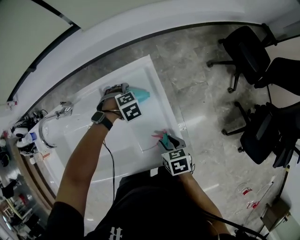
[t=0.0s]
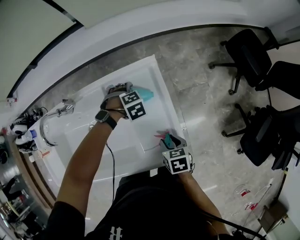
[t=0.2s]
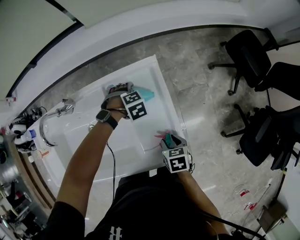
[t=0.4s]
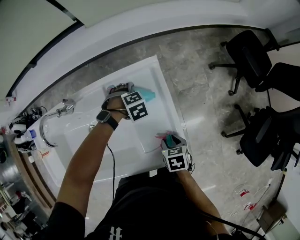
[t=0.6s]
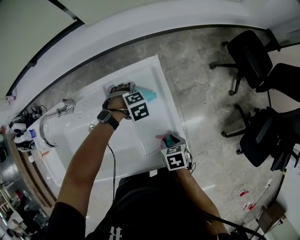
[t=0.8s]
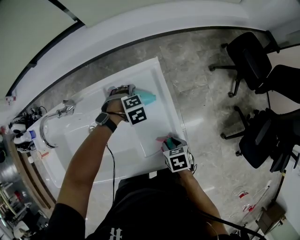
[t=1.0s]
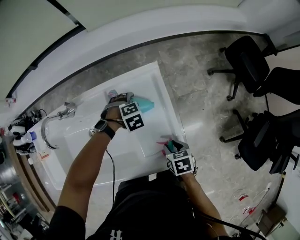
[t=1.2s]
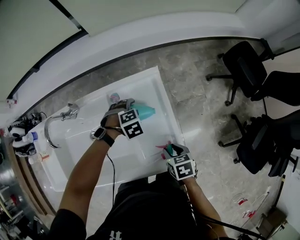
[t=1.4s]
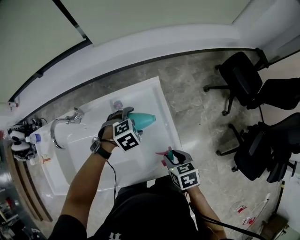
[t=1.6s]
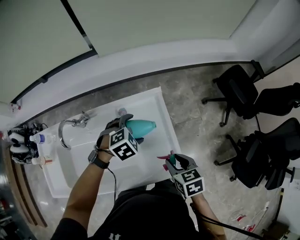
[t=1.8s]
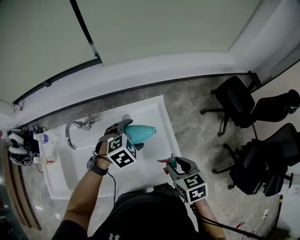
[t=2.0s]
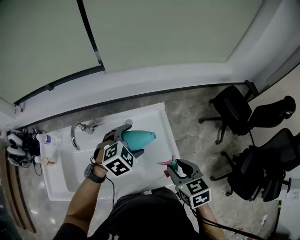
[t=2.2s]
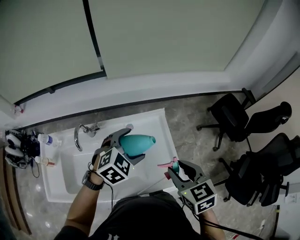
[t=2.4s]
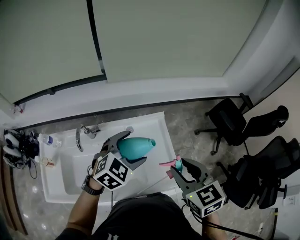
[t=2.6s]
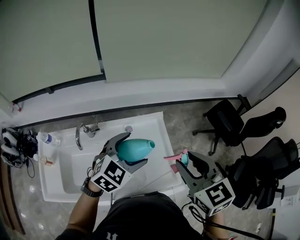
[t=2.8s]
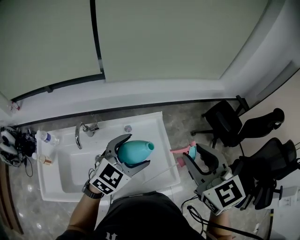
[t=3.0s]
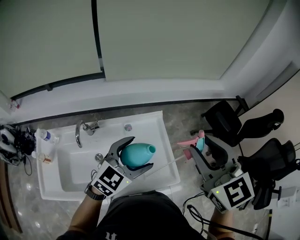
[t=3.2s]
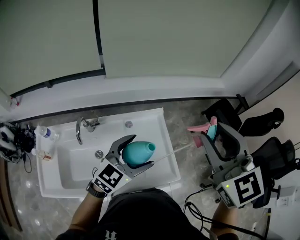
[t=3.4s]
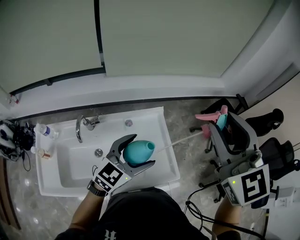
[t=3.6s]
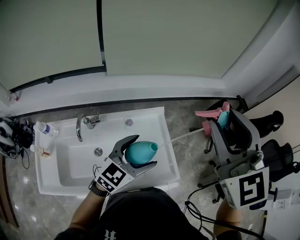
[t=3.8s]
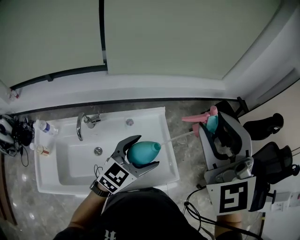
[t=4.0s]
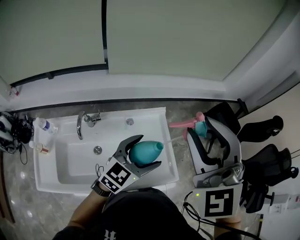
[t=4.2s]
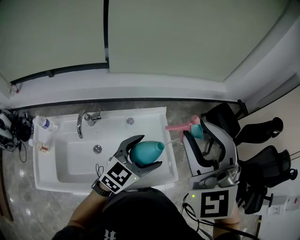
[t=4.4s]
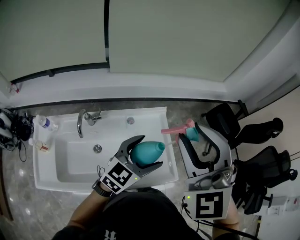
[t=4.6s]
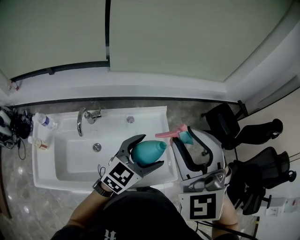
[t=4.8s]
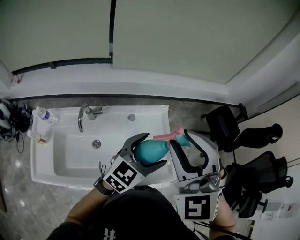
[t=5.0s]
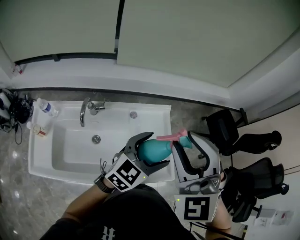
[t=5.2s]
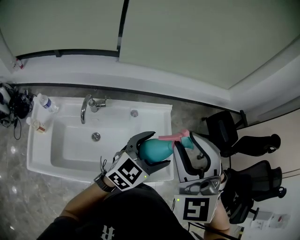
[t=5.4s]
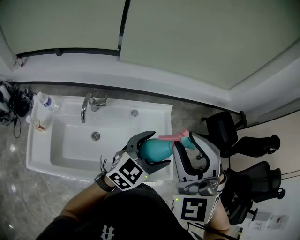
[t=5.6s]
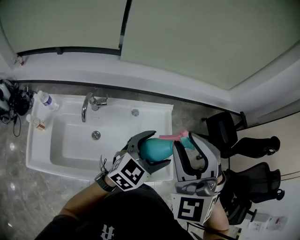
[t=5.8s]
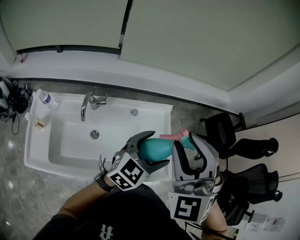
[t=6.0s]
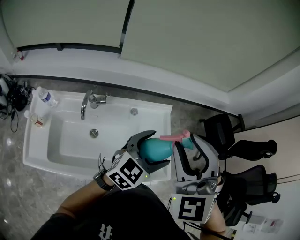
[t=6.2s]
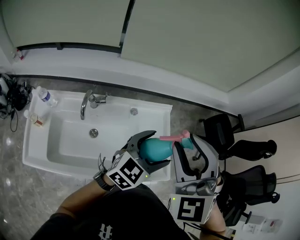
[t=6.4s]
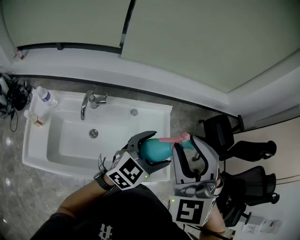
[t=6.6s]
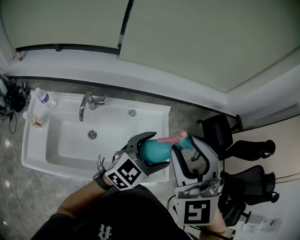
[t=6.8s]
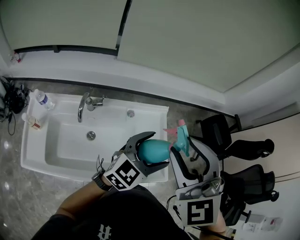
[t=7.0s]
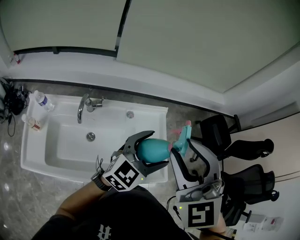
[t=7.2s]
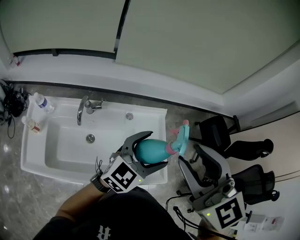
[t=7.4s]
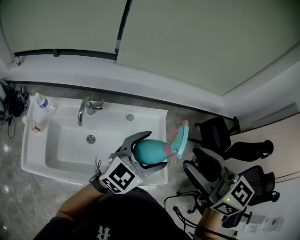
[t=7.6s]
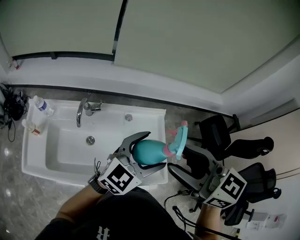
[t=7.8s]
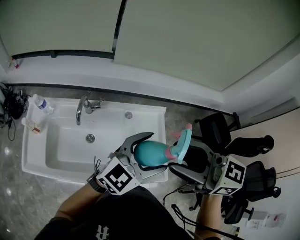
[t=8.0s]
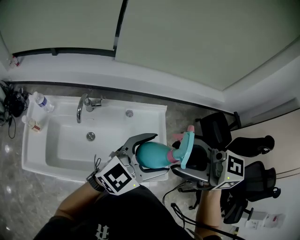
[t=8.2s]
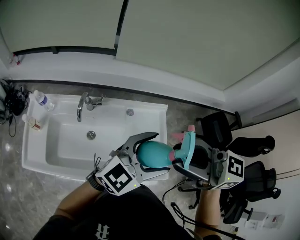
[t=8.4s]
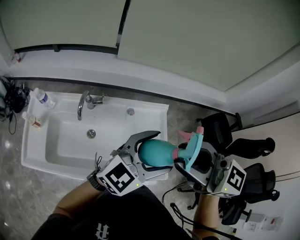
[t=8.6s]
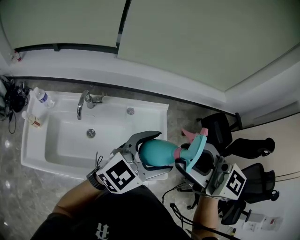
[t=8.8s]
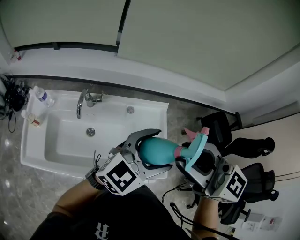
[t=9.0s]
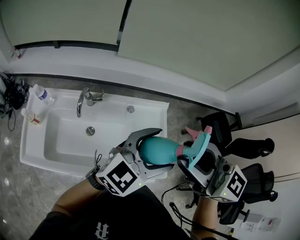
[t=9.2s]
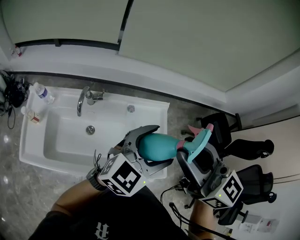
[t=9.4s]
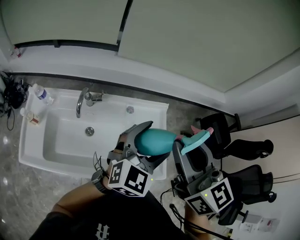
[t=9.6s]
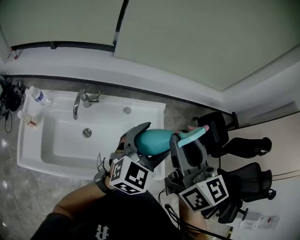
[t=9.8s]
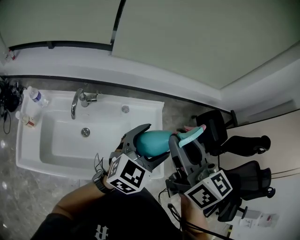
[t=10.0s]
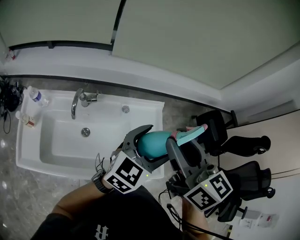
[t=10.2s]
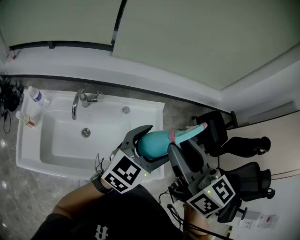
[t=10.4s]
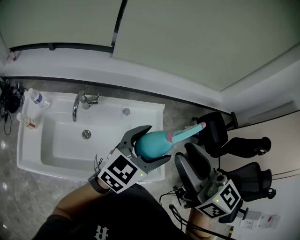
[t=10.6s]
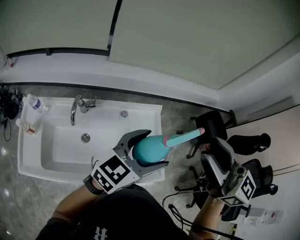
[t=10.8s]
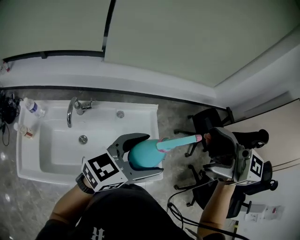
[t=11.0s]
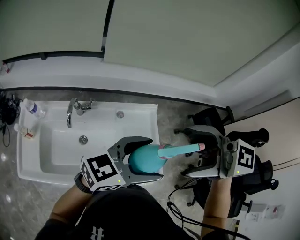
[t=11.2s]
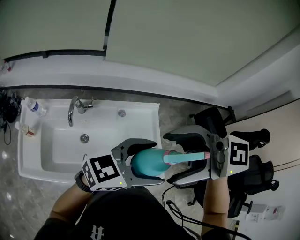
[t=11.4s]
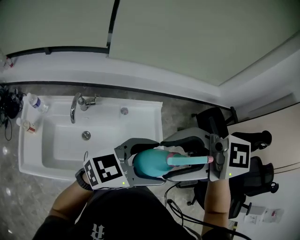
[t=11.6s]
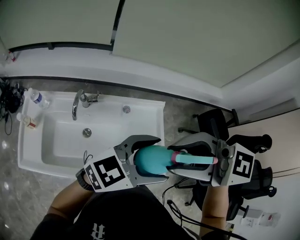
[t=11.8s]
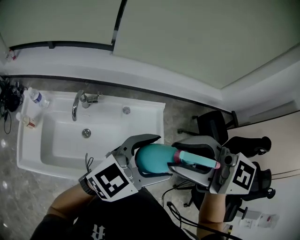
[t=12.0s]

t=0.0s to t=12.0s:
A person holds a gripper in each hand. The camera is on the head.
t=0.0s to t=1.6s: Both grippers move upward, about 10 cm.
t=1.6s to t=3.0s: The right gripper moves upward, approximately 40 cm, and angles its fingers upward, by roughly 30 degrees. Meanwhile the left gripper heads upward and backward, covering approximately 35 cm, and tilts its fingers some 50 degrees upward.
t=3.0s to t=4.4s: The right gripper goes roughly 10 cm upward and to the left, and swivels roughly 40 degrees.
t=4.4s to t=6.0s: The right gripper shifts some 5 cm downward.
t=6.0s to t=7.6s: The right gripper shifts by about 5 cm, and twists roughly 50 degrees clockwise, seen from behind.
t=7.6s to t=9.0s: The right gripper turns by about 20 degrees.
t=9.0s to t=10.4s: The right gripper changes place by about 5 cm, and rotates about 40 degrees.
t=10.4s to t=12.0s: The left gripper changes place by approximately 5 cm, while the right gripper moves upward, roughly 5 cm, rotates about 50 degrees, and opens and closes again.

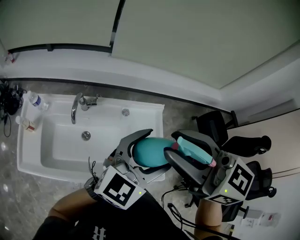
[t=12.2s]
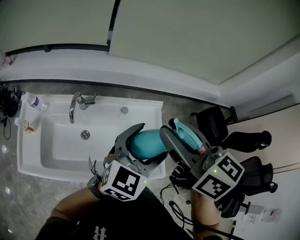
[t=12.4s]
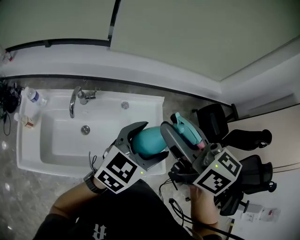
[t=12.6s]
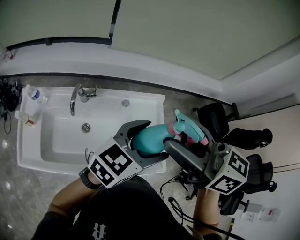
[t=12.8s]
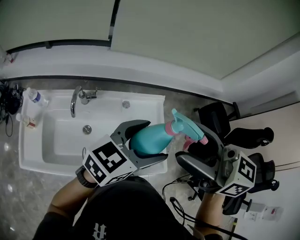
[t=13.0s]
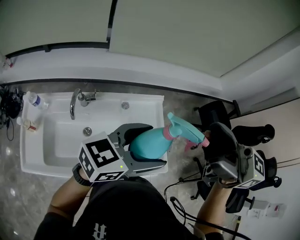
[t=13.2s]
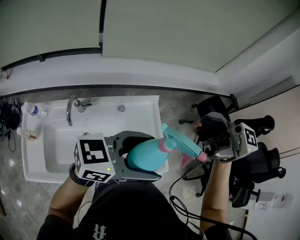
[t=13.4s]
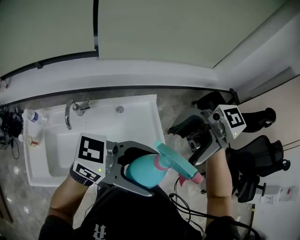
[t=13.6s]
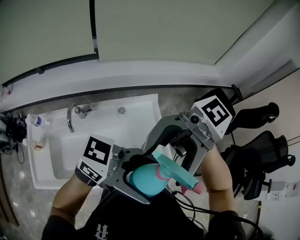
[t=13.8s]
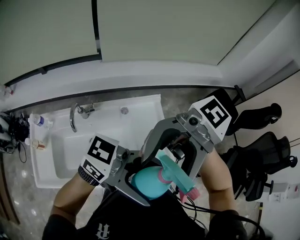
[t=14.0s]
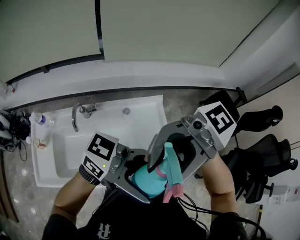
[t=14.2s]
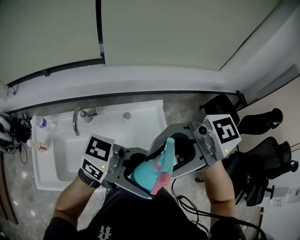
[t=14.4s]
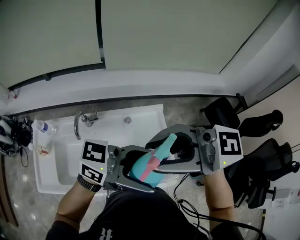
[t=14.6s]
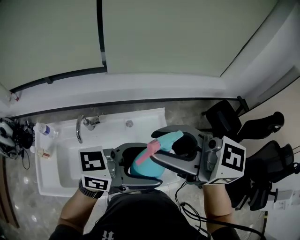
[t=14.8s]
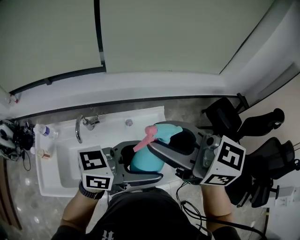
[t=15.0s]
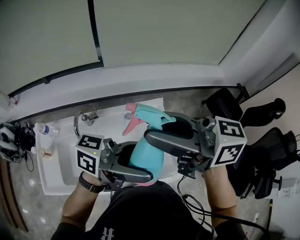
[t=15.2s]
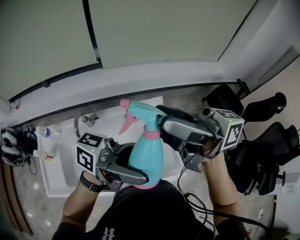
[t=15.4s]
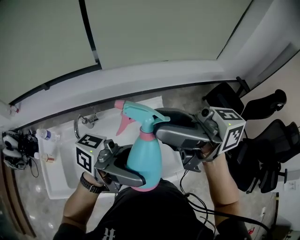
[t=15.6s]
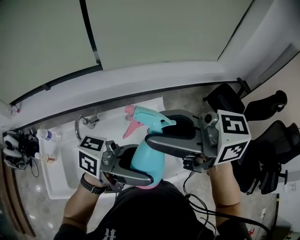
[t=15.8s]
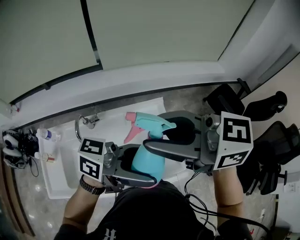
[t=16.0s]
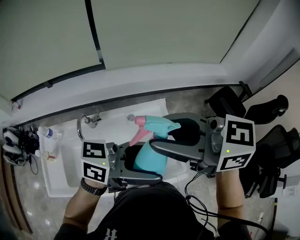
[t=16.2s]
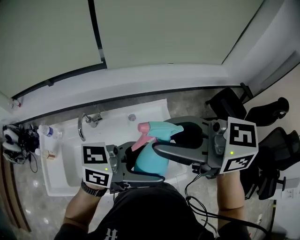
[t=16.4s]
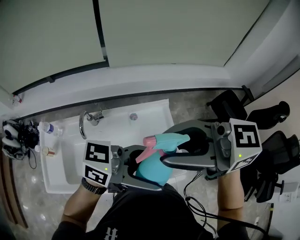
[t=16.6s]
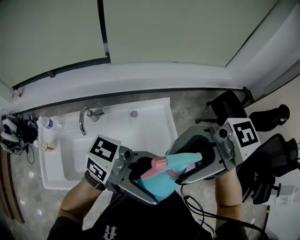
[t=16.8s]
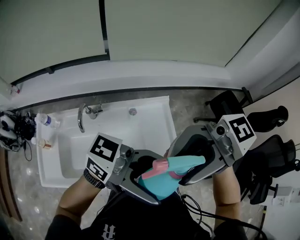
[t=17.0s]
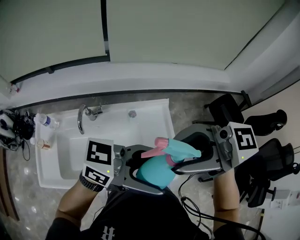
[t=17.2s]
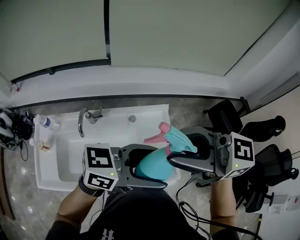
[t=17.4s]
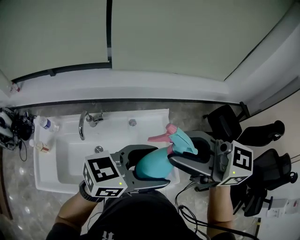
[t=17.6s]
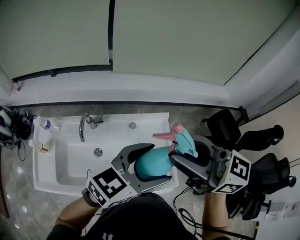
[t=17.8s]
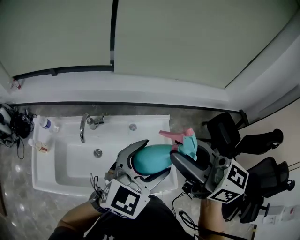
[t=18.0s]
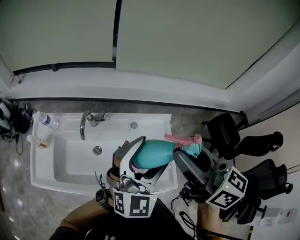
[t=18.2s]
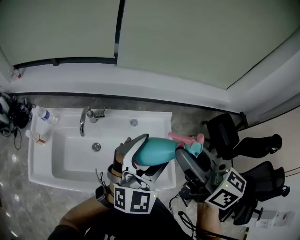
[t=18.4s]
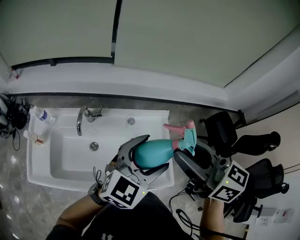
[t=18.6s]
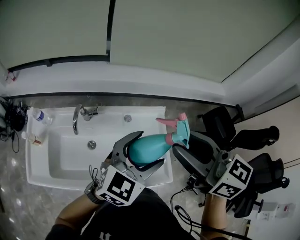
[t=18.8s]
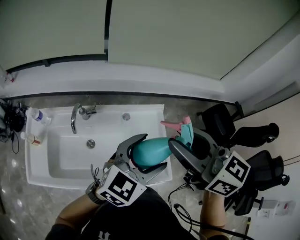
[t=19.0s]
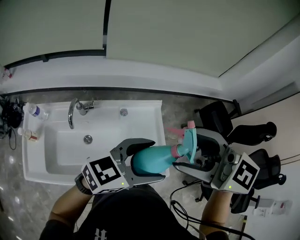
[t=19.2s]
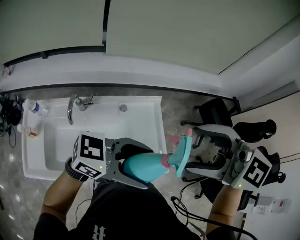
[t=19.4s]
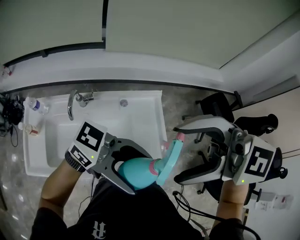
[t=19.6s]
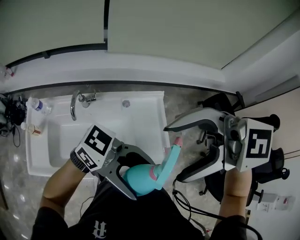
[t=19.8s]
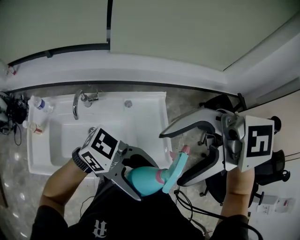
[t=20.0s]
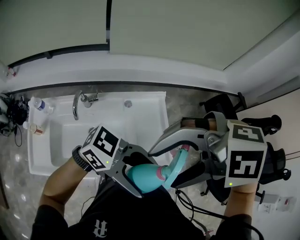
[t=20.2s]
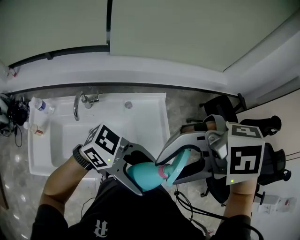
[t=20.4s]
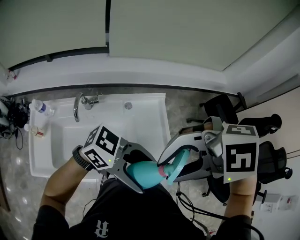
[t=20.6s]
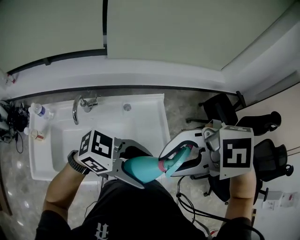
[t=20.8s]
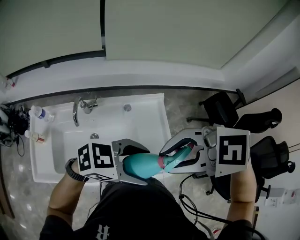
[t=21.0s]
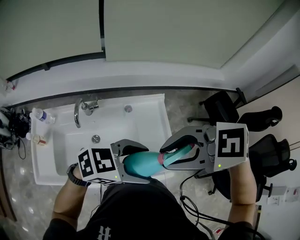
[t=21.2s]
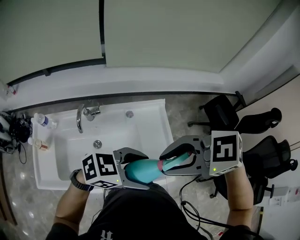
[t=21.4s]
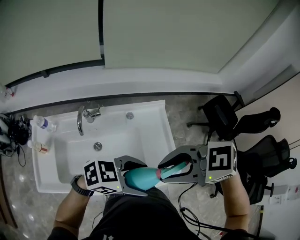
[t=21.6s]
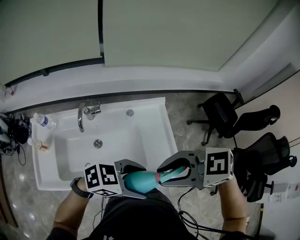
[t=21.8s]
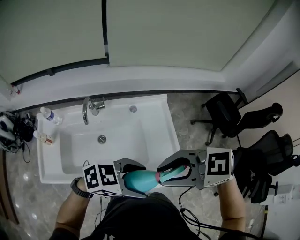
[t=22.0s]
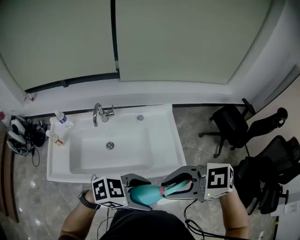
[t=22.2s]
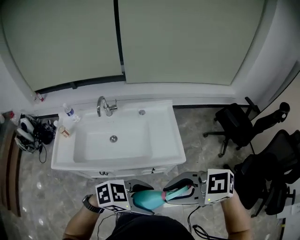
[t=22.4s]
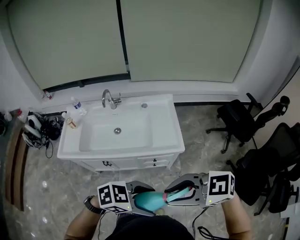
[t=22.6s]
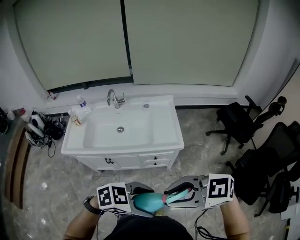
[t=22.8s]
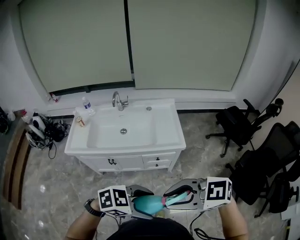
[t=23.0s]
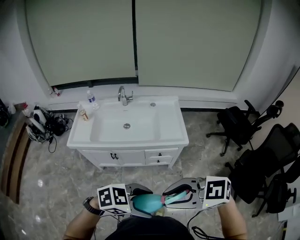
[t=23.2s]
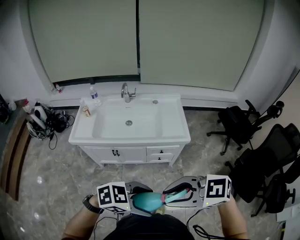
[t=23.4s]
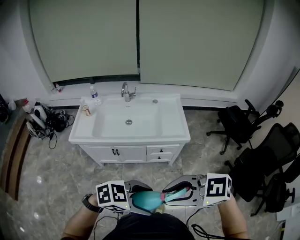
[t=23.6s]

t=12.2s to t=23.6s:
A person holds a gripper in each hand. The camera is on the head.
t=12.2s to t=13.6s: The left gripper moves some 10 cm, and rotates roughly 70 degrees; the right gripper moves up and down over some 10 cm, changing direction 2 times, rotates approximately 50 degrees, and opens its fingers.
t=13.6s to t=15.0s: The left gripper moves roughly 5 cm, and swivels roughly 30 degrees, while the right gripper ends up approximately 5 cm from where it was, turns by some 50 degrees, and closes up.
t=16.4s to t=17.8s: The left gripper changes its angle by approximately 30 degrees.
t=17.8s to t=19.4s: The right gripper moves about 5 cm, changes its angle by about 40 degrees, and opens its fingers; the left gripper shifts by about 5 cm, and swivels some 40 degrees.
t=19.4s to t=20.8s: The right gripper ends up some 10 cm from where it was, rotates about 40 degrees, and closes up.
t=20.8s to t=22.2s: The right gripper shifts by roughly 20 cm, and swivels roughly 30 degrees. Meanwhile the left gripper changes place by approximately 20 cm, and swivels about 20 degrees.
t=22.2s to t=23.6s: The right gripper ends up some 35 cm from where it was; the left gripper ends up approximately 35 cm from where it was.
